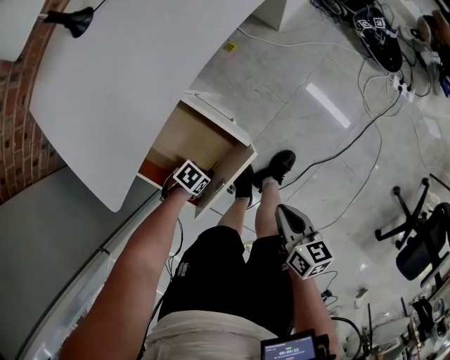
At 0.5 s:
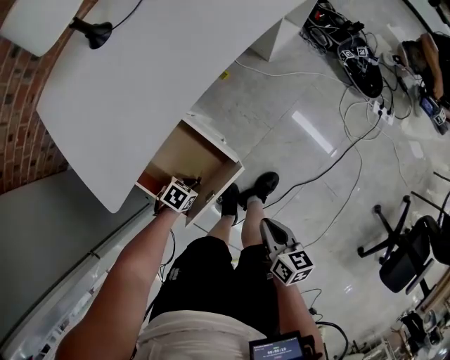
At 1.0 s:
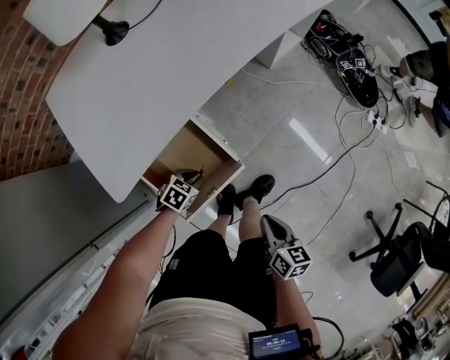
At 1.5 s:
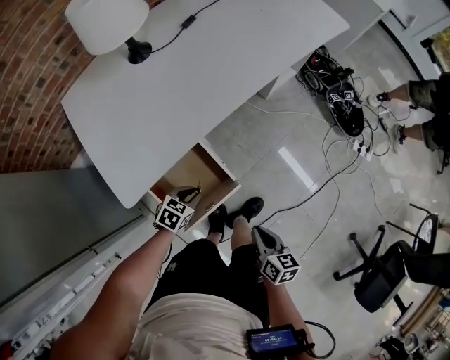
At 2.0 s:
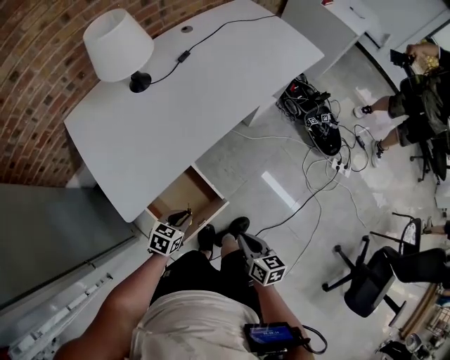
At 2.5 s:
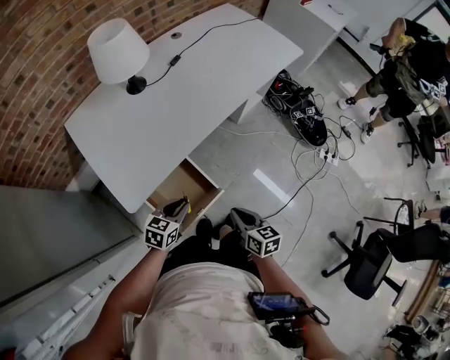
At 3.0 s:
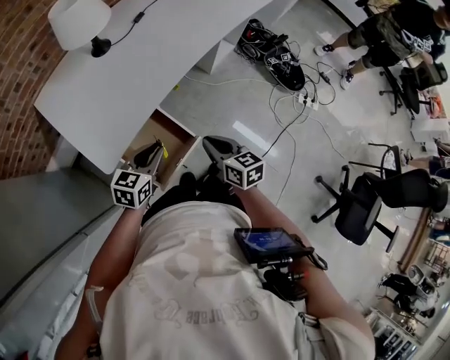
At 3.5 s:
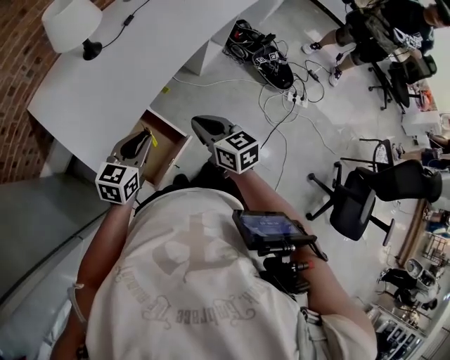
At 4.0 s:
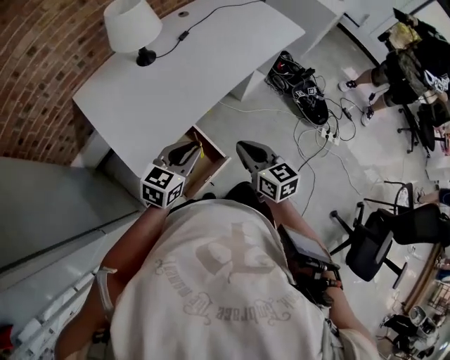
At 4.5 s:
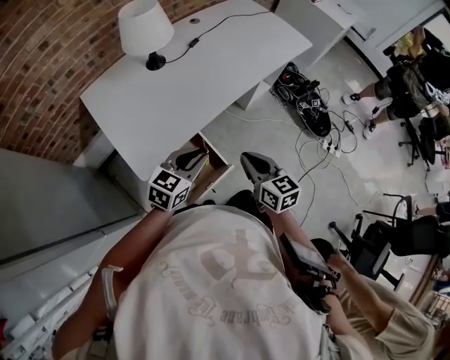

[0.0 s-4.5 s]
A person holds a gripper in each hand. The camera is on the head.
0.0 to 2.0 s: The right gripper goes about 15 cm upward. Meanwhile the left gripper travels upward by about 30 cm, and swivels some 50 degrees.
2.0 to 4.5 s: The left gripper goes roughly 25 cm upward, and changes its angle by roughly 30 degrees, while the right gripper shifts some 20 cm upward and forward, and rotates about 30 degrees.

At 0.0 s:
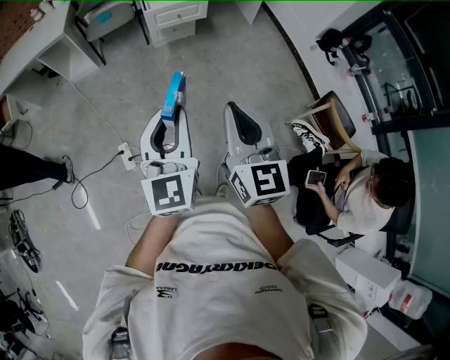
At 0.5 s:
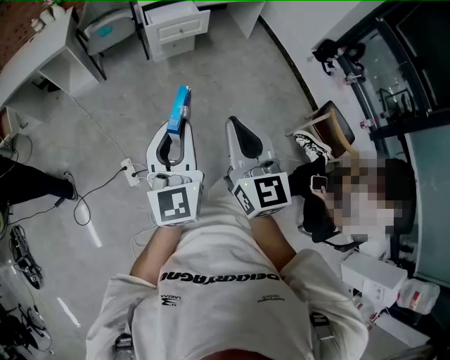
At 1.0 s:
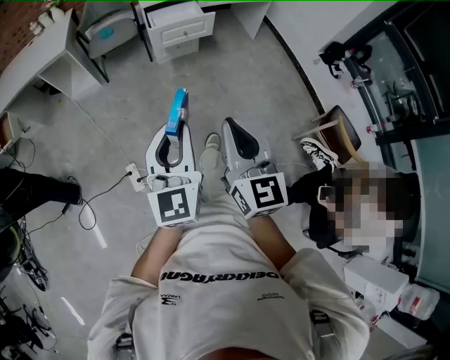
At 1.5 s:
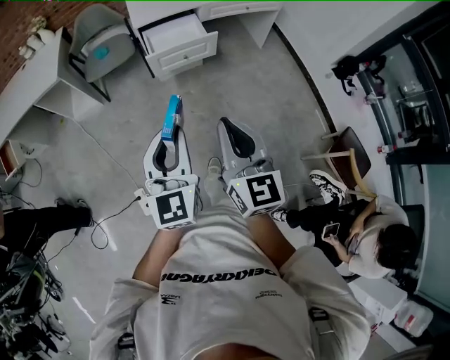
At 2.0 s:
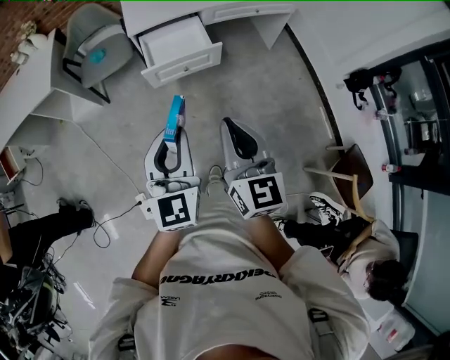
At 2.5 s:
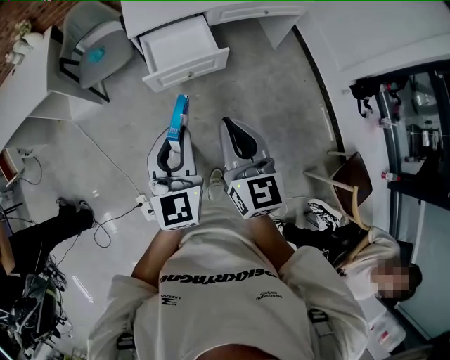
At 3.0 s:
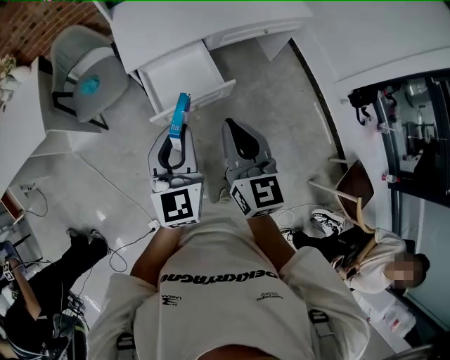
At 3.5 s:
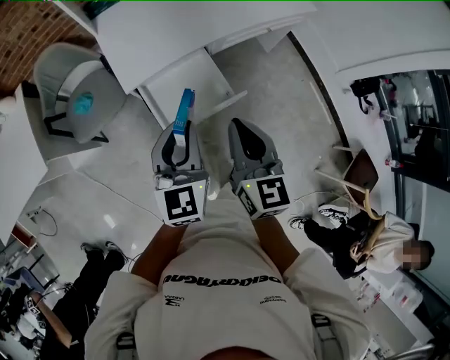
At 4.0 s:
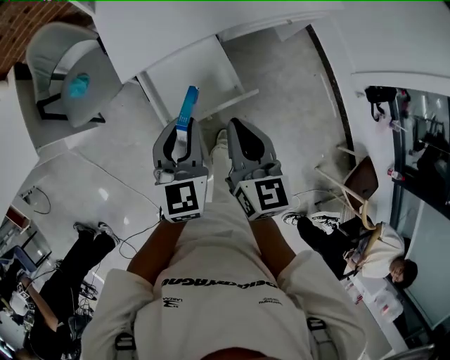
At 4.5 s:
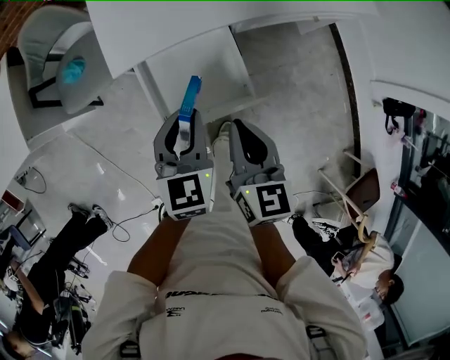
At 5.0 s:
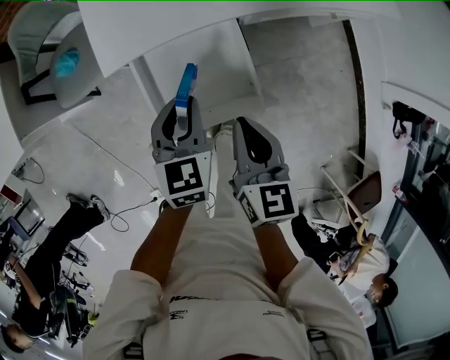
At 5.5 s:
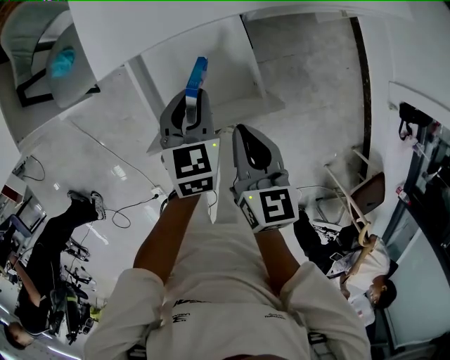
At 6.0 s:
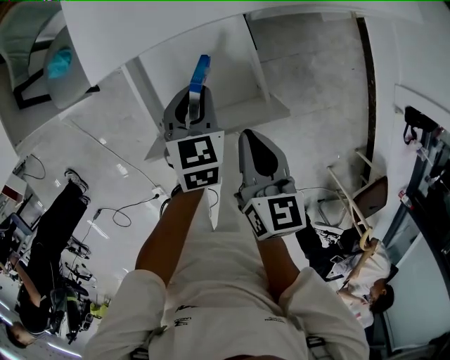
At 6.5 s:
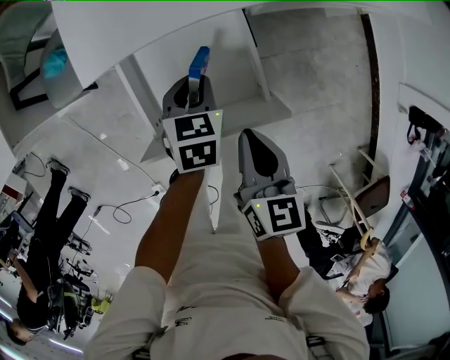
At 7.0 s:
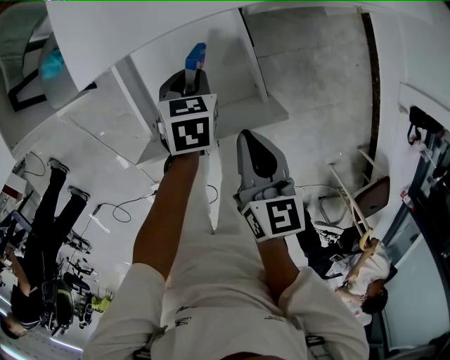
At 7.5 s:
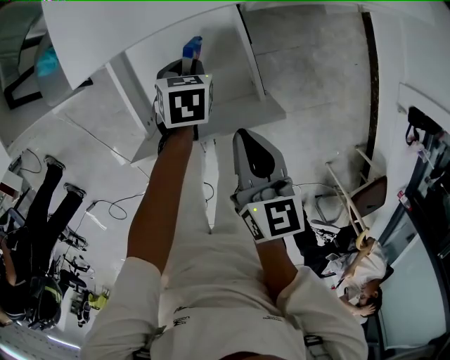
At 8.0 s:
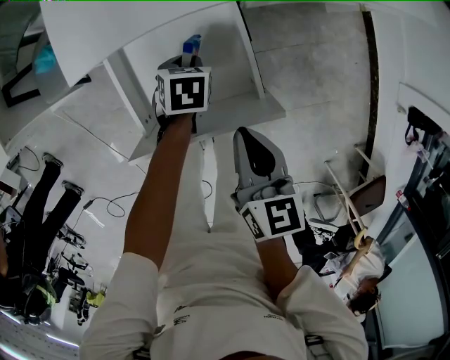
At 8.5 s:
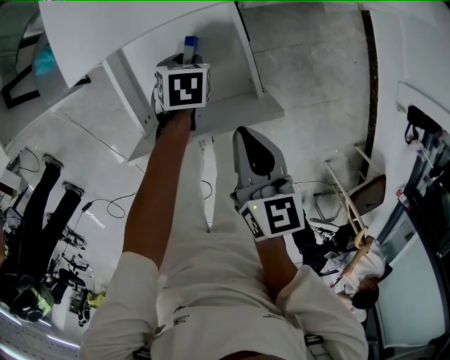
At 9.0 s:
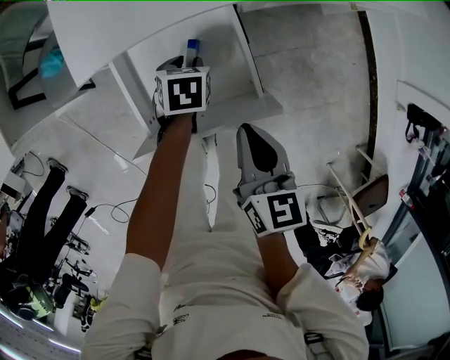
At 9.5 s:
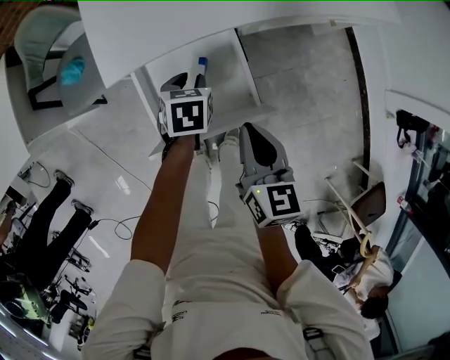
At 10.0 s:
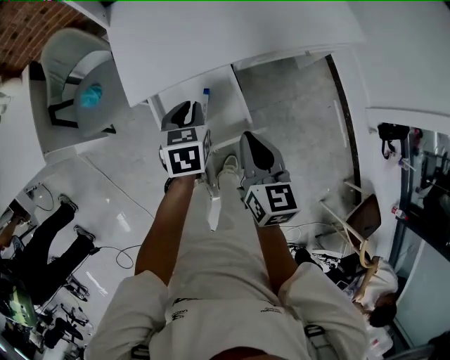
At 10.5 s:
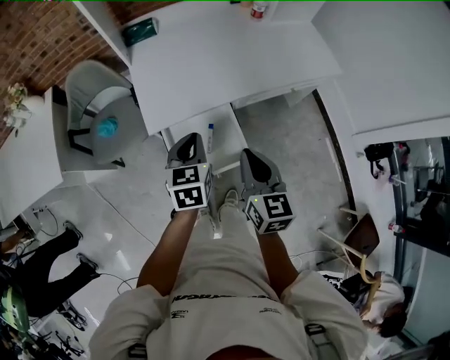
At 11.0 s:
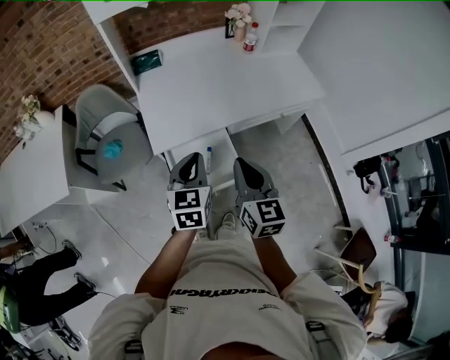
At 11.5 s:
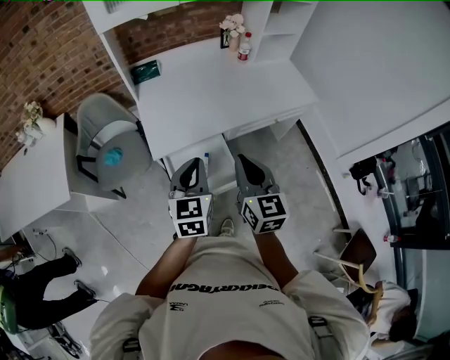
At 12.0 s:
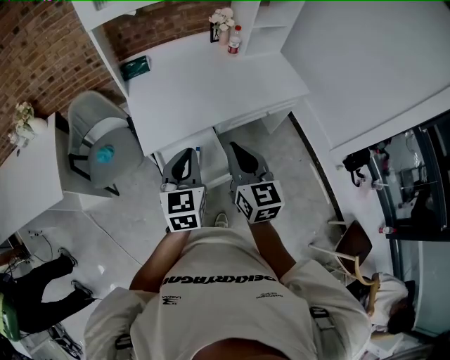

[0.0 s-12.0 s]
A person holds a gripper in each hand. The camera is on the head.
0.0 to 2.0 s: Both grippers are carried forward, roughly 50 cm.
2.0 to 4.0 s: The two grippers travel together, forward, some 50 cm.
4.0 to 6.0 s: The left gripper goes about 30 cm downward and forward, and turns by roughly 30 degrees. The right gripper is displaced downward by roughly 20 cm.
6.0 to 8.0 s: The left gripper is displaced downward by roughly 15 cm, and swivels about 20 degrees.
8.0 to 10.0 s: The right gripper shifts some 20 cm upward, while the left gripper shifts roughly 30 cm upward, and swivels some 20 degrees.
10.0 to 12.0 s: The right gripper heads upward, covering about 25 cm. Meanwhile the left gripper shifts roughly 30 cm upward and backward, and changes its angle by roughly 30 degrees.

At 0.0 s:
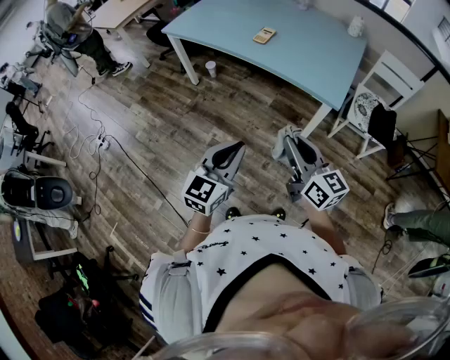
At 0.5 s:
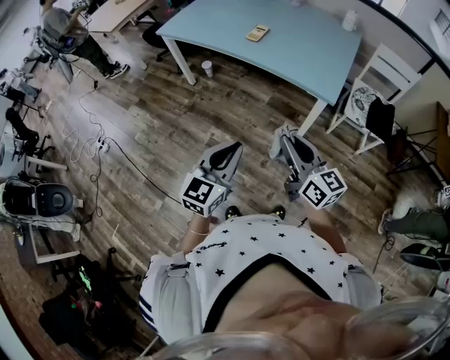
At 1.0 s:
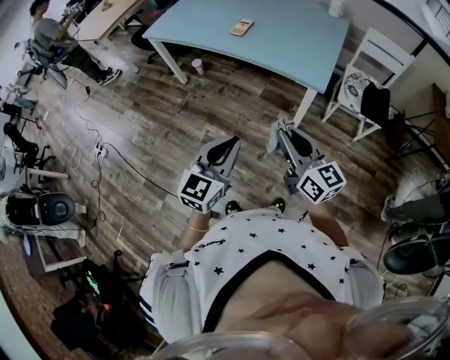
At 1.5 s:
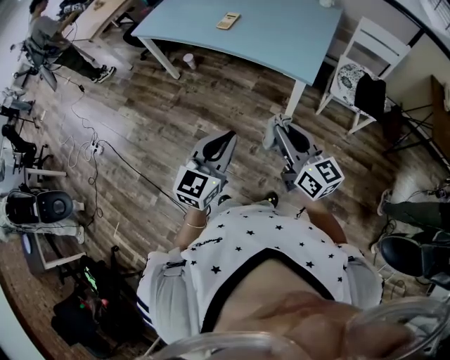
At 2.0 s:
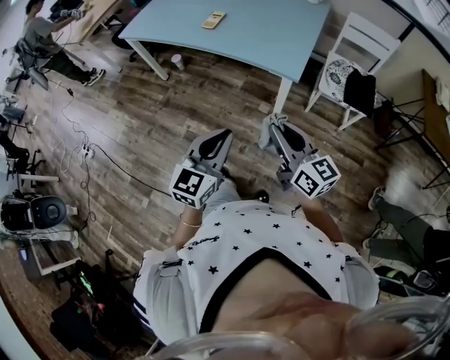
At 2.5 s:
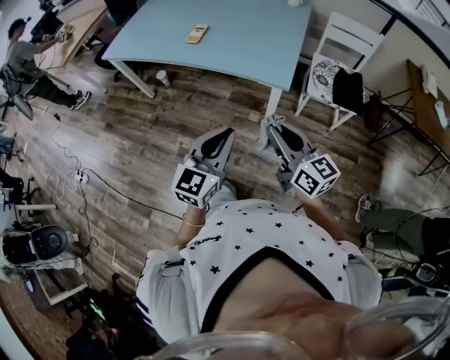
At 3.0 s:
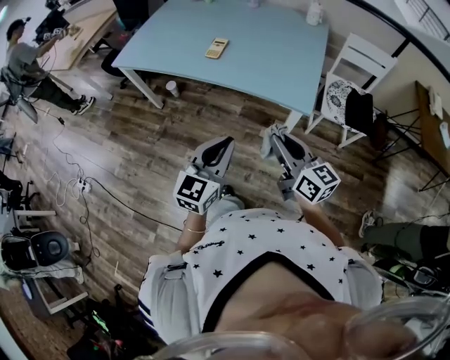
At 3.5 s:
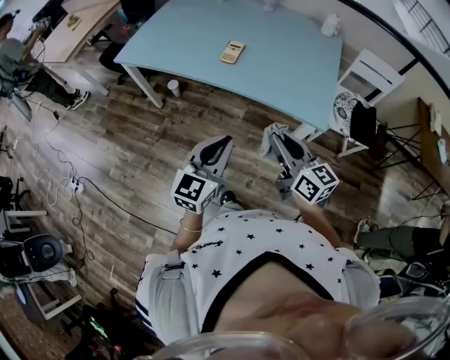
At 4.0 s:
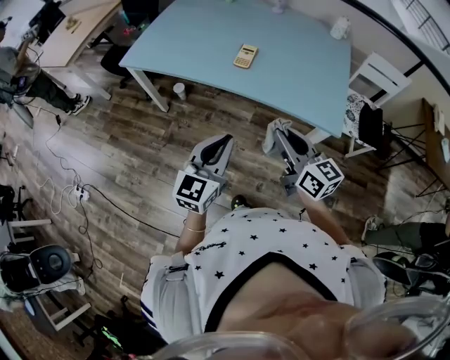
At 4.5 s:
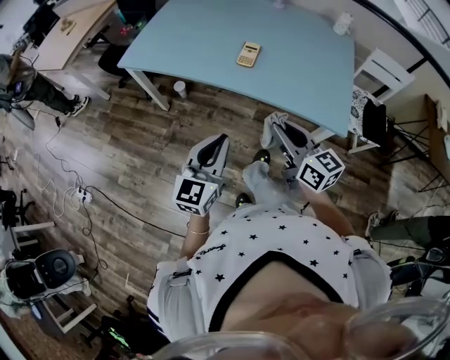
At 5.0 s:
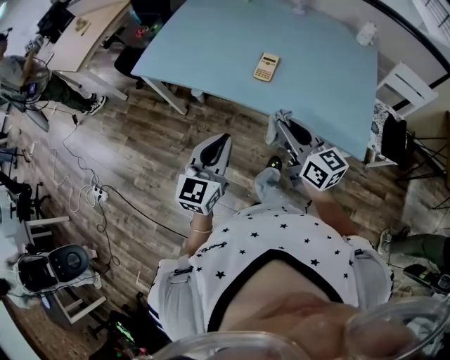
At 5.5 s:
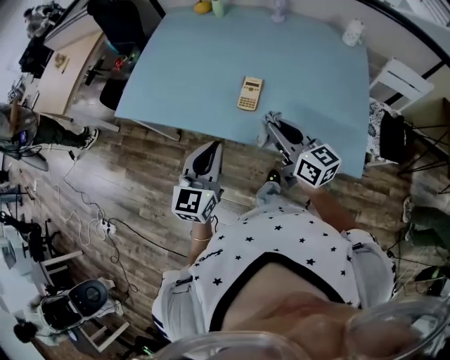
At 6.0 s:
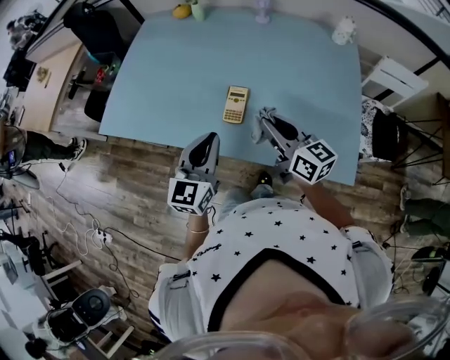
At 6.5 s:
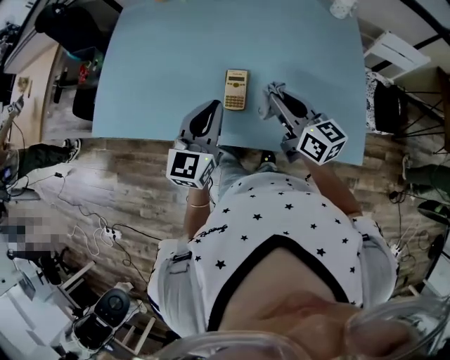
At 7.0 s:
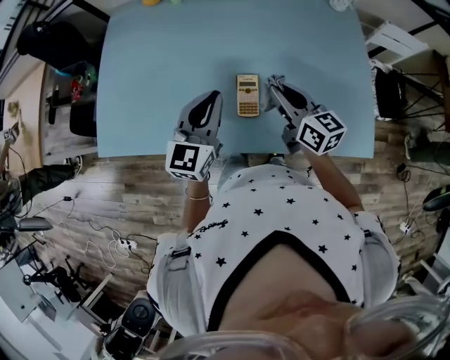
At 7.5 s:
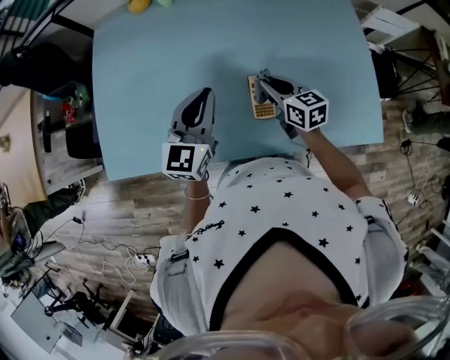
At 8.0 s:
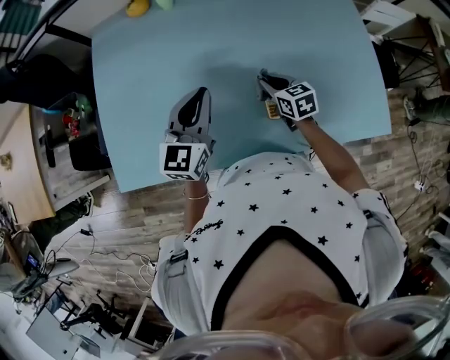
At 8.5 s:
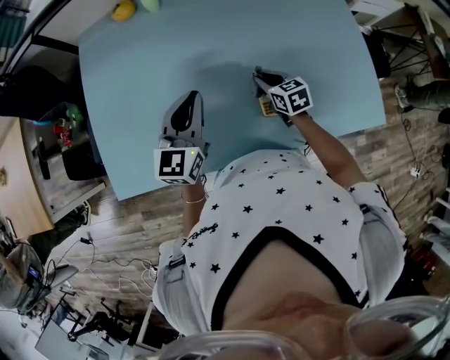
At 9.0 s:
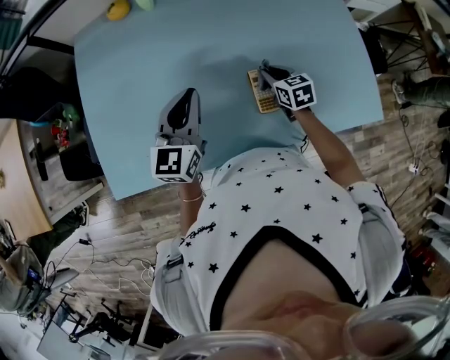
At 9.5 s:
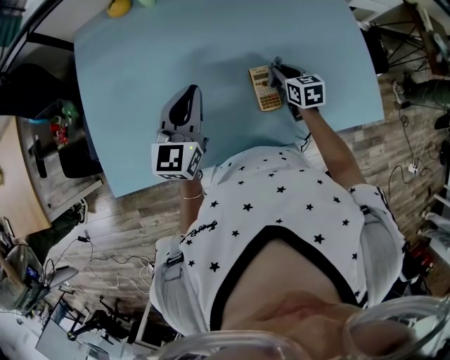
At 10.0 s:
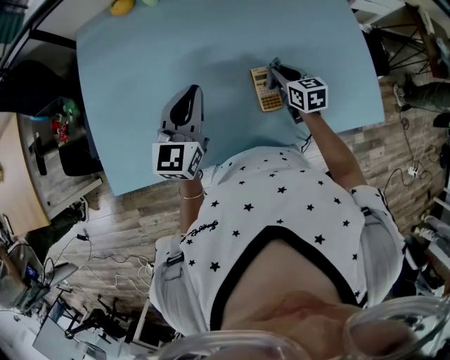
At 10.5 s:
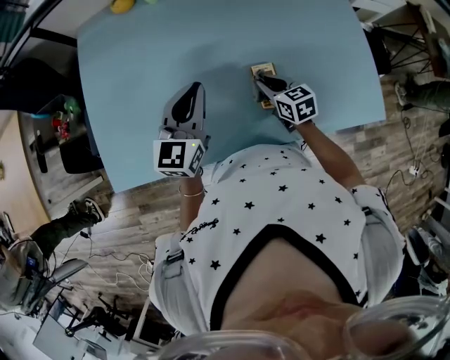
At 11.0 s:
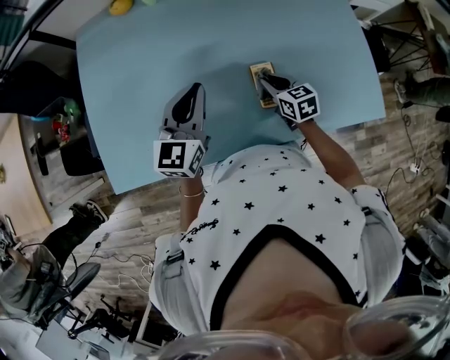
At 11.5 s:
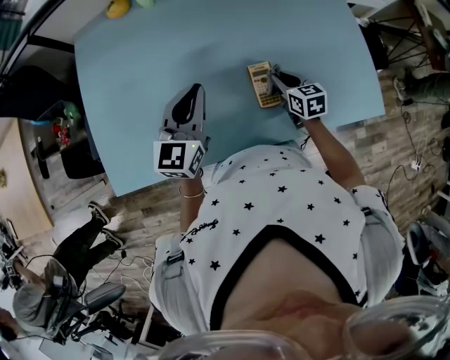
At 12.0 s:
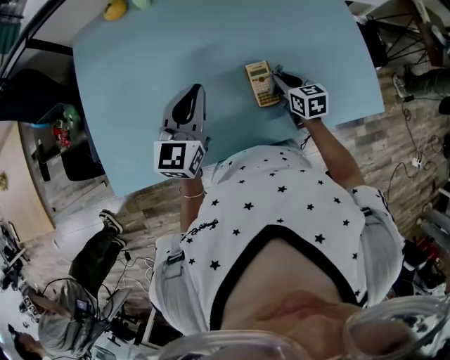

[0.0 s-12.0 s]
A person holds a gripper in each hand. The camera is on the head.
0.0 to 2.0 s: Both grippers move to the right, some 15 cm.
2.0 to 4.0 s: The right gripper goes roughly 30 cm forward and to the left. The left gripper heads to the left and forward, covering approximately 30 cm.
4.0 to 6.0 s: Both grippers travel together forward, roughly 30 cm.
6.0 to 8.0 s: The left gripper is displaced forward and to the left by about 25 cm, and changes its angle by about 20 degrees; the right gripper shifts roughly 25 cm downward, forward and to the left, and points its fingers approximately 40 degrees further downward.
8.0 to 10.0 s: The right gripper travels to the right by some 5 cm.
10.0 to 12.0 s: The right gripper reaches some 5 cm to the left, then returns.
